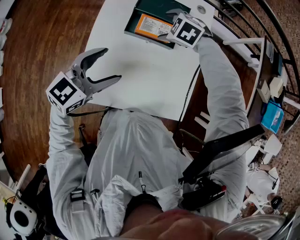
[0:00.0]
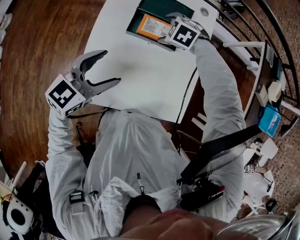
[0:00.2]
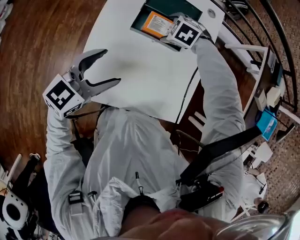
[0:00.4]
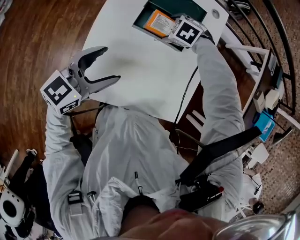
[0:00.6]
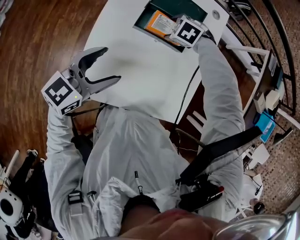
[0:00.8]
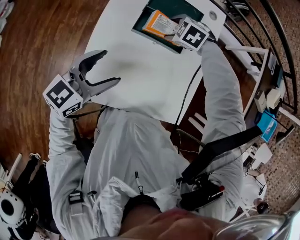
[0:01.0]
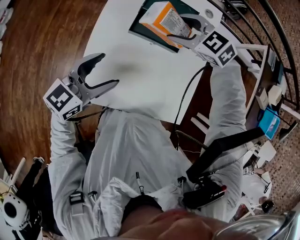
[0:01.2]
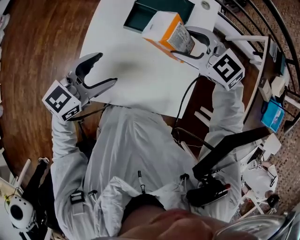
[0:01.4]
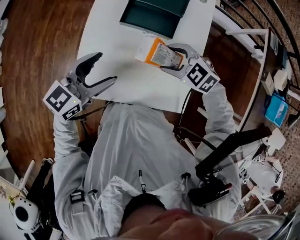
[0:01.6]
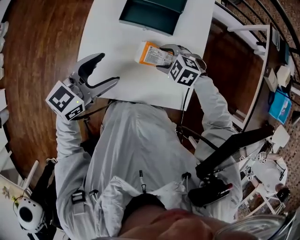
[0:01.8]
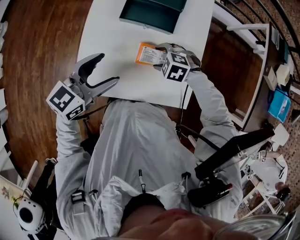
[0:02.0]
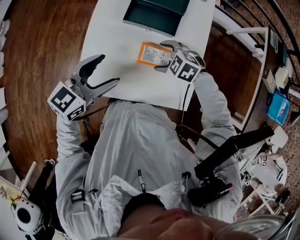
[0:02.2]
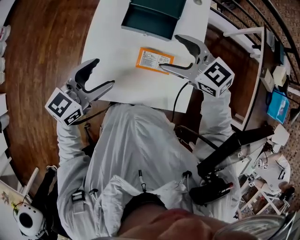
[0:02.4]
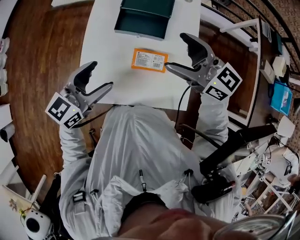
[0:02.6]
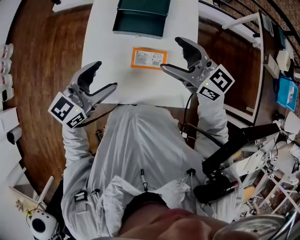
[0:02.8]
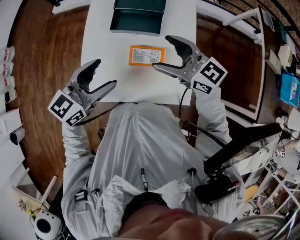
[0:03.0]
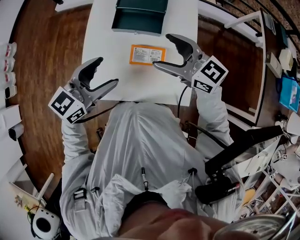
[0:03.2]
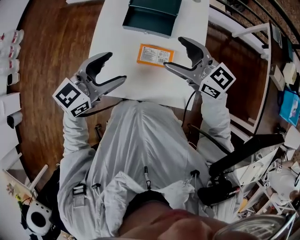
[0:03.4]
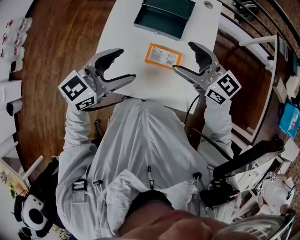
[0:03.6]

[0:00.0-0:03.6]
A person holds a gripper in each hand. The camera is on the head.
0:00.0 to 0:01.8: The right gripper moves up and down over some 20 cm, changing direction 2 times.
0:01.8 to 0:03.6: The right gripper shifts about 20 cm upward, and tilts its fingers approximately 60 degrees upward. The left gripper shifts approximately 5 cm upward.

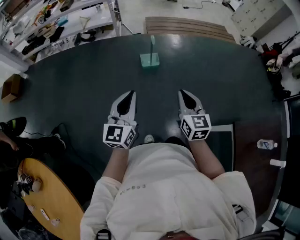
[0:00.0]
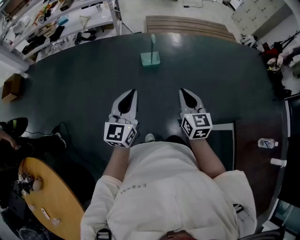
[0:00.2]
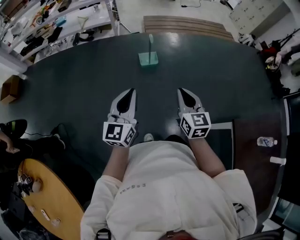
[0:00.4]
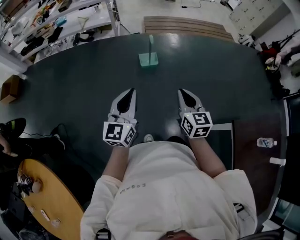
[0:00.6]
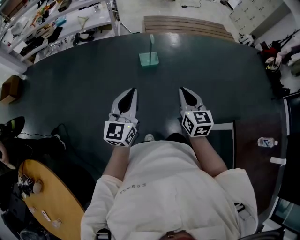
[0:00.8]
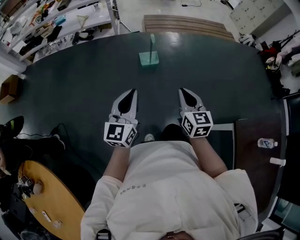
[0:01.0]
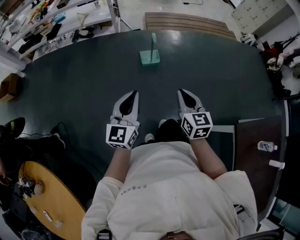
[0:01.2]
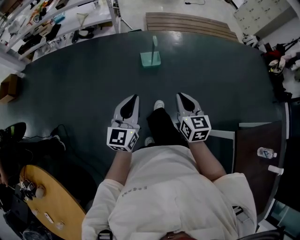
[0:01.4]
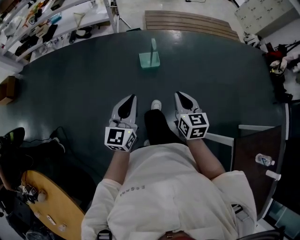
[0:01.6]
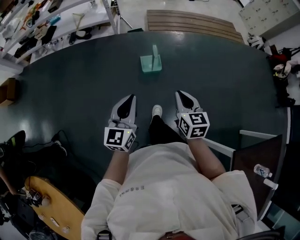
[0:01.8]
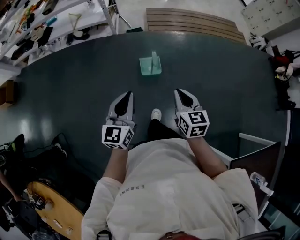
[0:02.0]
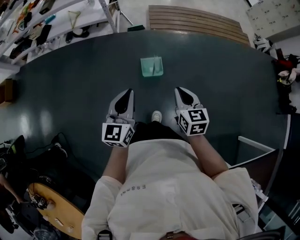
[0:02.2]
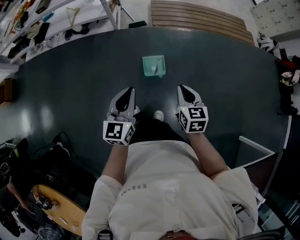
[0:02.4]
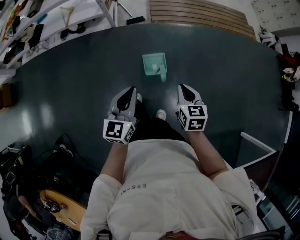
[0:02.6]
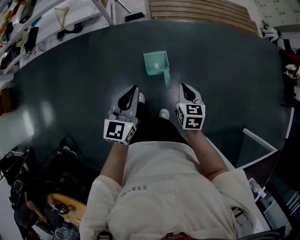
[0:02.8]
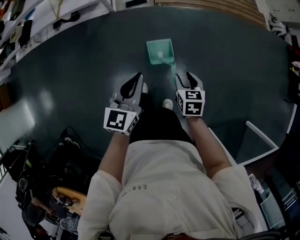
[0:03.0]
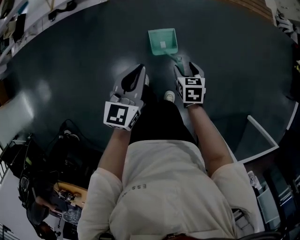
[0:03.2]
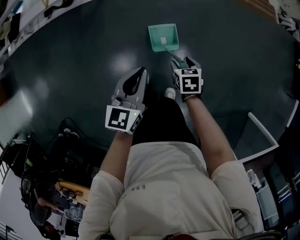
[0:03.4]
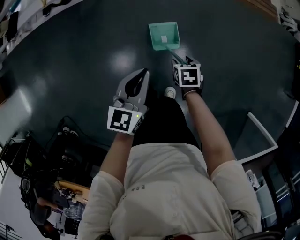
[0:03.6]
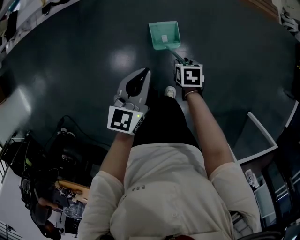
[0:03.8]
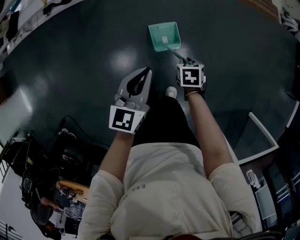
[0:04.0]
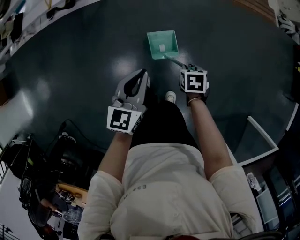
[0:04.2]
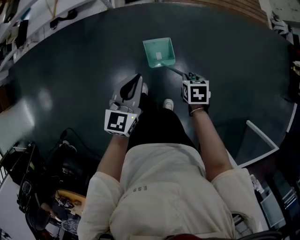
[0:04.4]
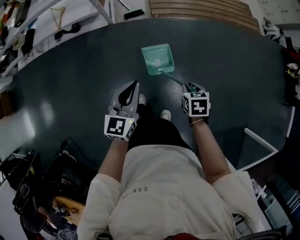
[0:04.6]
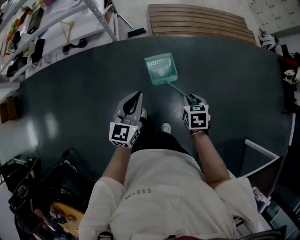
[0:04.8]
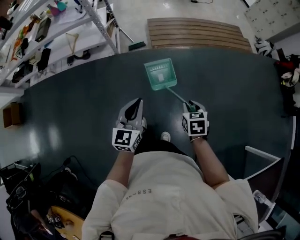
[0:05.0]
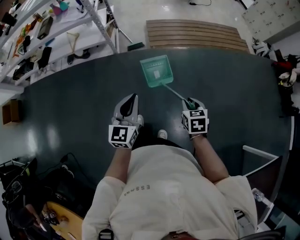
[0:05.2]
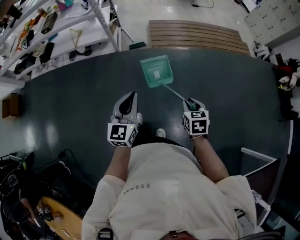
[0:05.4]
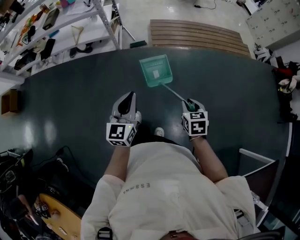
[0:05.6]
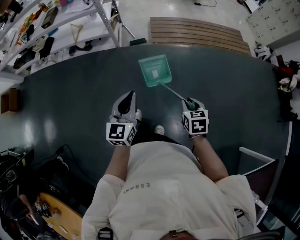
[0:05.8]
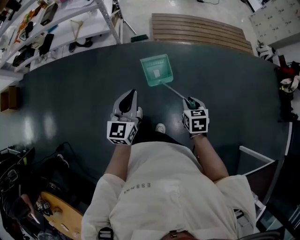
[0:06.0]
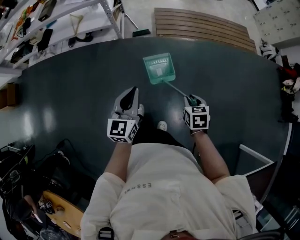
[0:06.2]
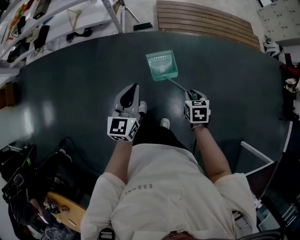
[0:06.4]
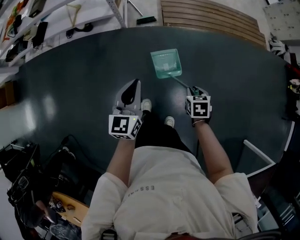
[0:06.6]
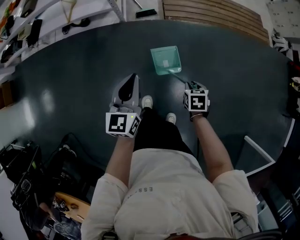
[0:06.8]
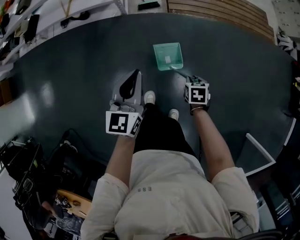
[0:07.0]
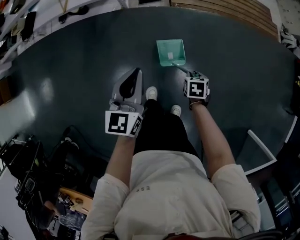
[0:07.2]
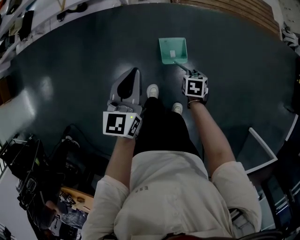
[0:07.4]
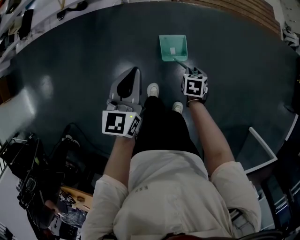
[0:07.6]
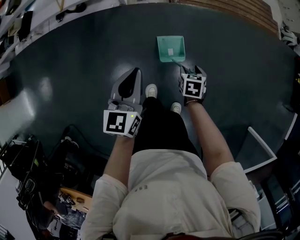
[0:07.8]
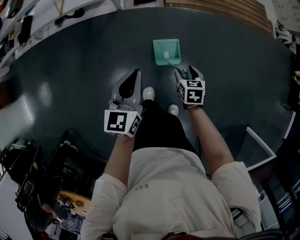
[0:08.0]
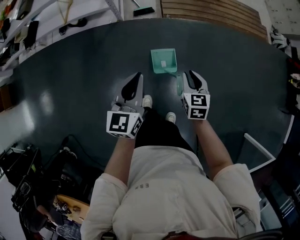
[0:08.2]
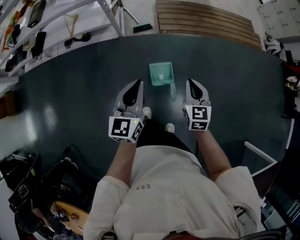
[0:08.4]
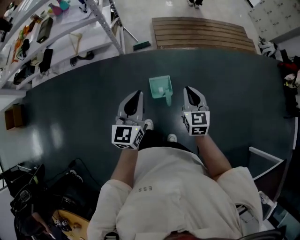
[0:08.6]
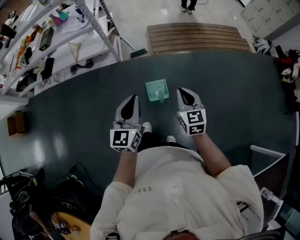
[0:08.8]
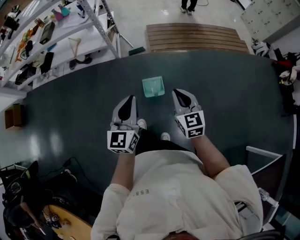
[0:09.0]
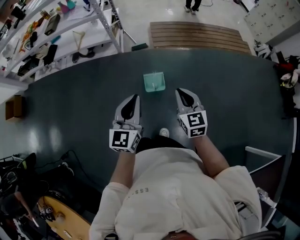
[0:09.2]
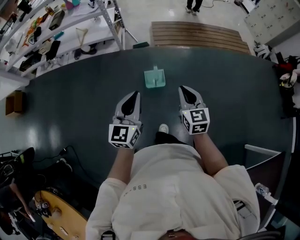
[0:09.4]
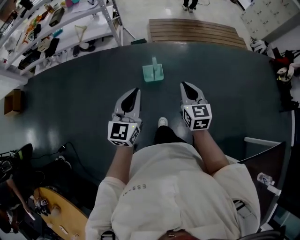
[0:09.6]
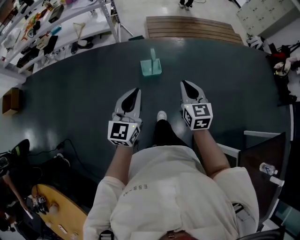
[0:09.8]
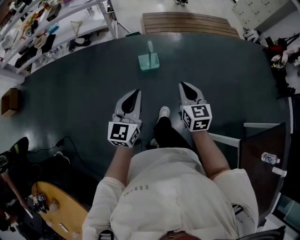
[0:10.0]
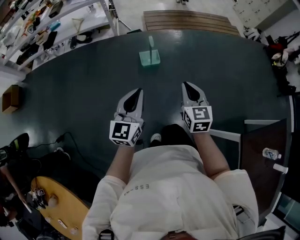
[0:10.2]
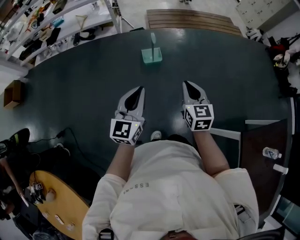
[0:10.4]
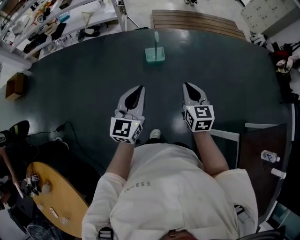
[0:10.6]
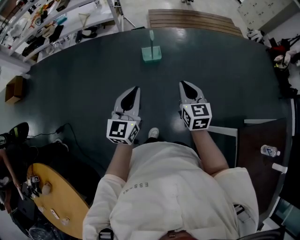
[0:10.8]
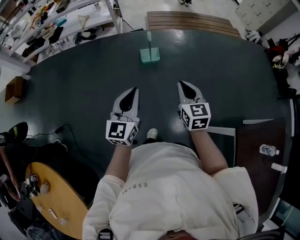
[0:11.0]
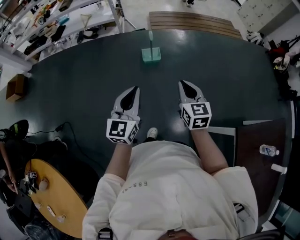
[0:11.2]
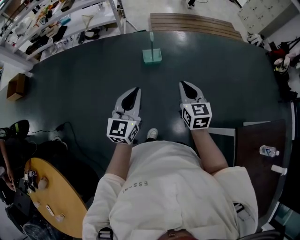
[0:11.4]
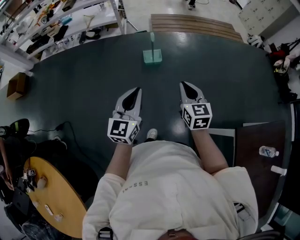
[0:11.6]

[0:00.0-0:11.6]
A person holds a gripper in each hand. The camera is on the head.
0:00.0 to 0:01.4: The grippers both shift forward by roughly 5 cm.
0:01.4 to 0:02.8: The pair of grippers is taken forward, about 50 cm. The right gripper changes its angle by about 20 degrees.
0:02.8 to 0:04.4: The left gripper is displaced downward by roughly 5 cm. Meanwhile the right gripper is displaced downward by about 10 cm, swivels roughly 30 degrees, and opens and closes again.
0:04.4 to 0:05.8: Both grippers move upward and backward, some 20 cm. The right gripper rotates approximately 20 degrees.
0:05.8 to 0:07.2: The left gripper ends up roughly 25 cm from where it was. The right gripper goes some 25 cm downward, and swivels approximately 20 degrees.
0:07.2 to 0:08.8: The right gripper heads upward, covering about 30 cm, tilts its fingers roughly 50 degrees upward, and opens, then closes once more. Meanwhile the left gripper ends up about 25 cm from where it was.
0:08.8 to 0:10.2: Both grippers move backward, some 35 cm.
0:10.2 to 0:11.6: The two grippers go about 10 cm backward.

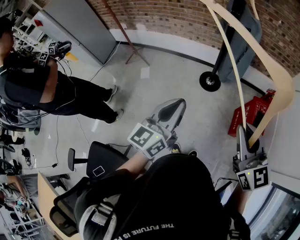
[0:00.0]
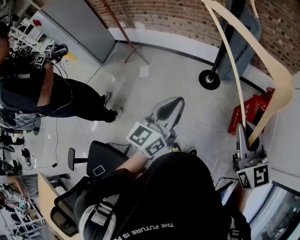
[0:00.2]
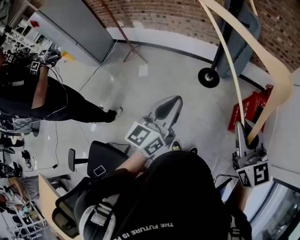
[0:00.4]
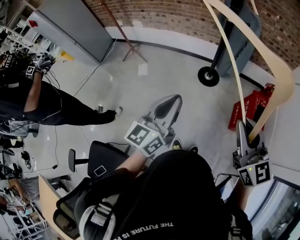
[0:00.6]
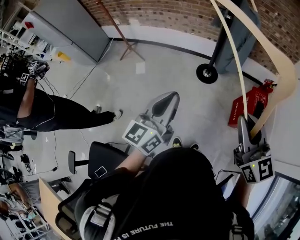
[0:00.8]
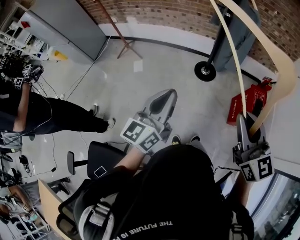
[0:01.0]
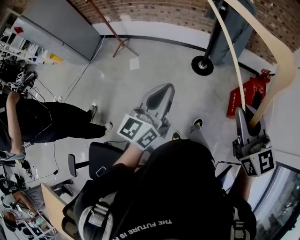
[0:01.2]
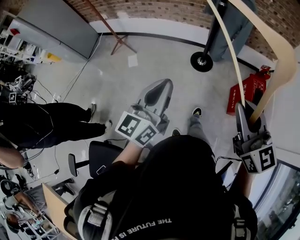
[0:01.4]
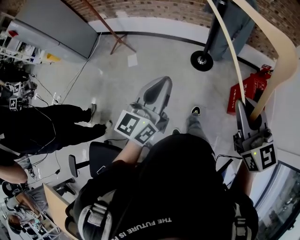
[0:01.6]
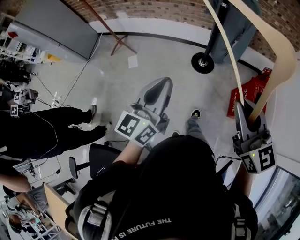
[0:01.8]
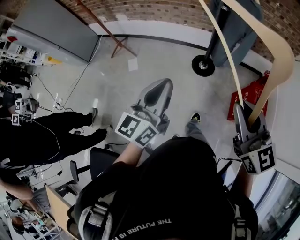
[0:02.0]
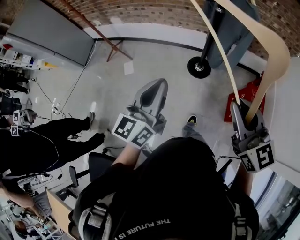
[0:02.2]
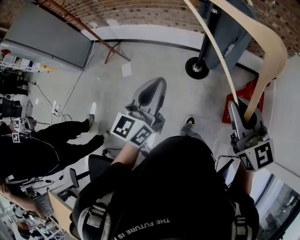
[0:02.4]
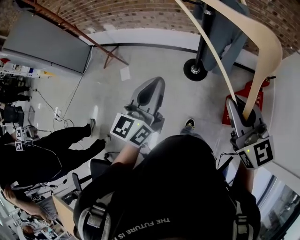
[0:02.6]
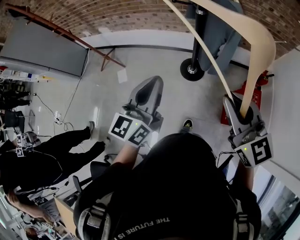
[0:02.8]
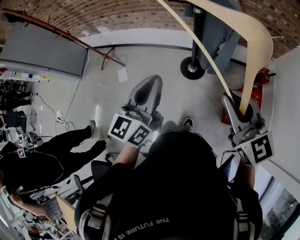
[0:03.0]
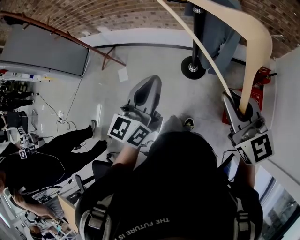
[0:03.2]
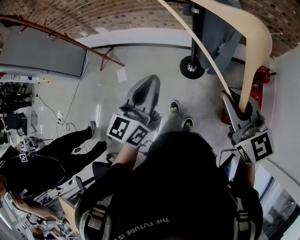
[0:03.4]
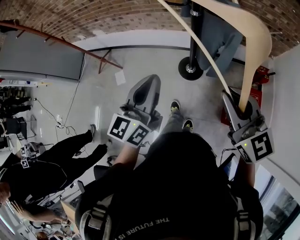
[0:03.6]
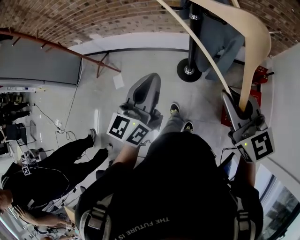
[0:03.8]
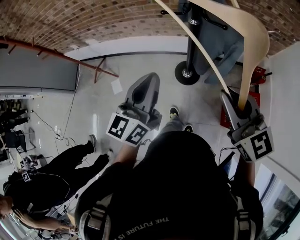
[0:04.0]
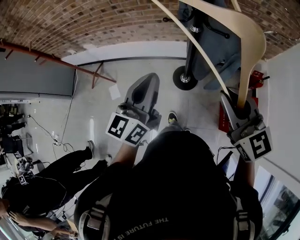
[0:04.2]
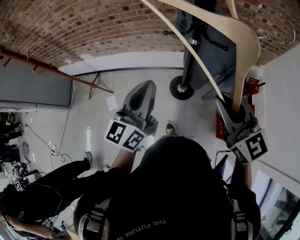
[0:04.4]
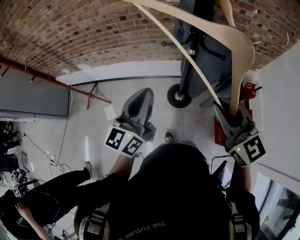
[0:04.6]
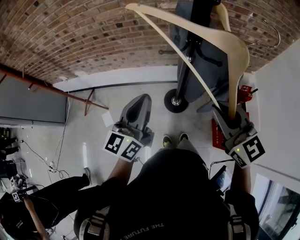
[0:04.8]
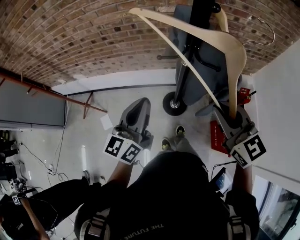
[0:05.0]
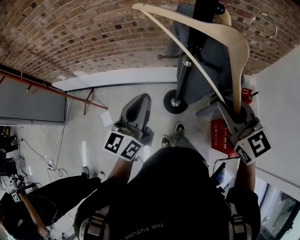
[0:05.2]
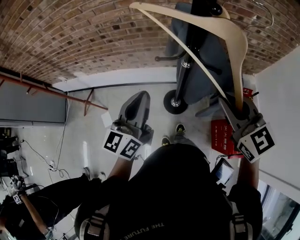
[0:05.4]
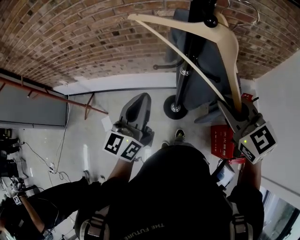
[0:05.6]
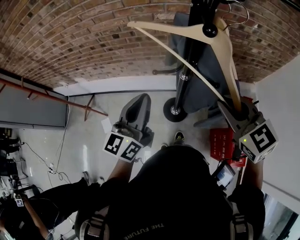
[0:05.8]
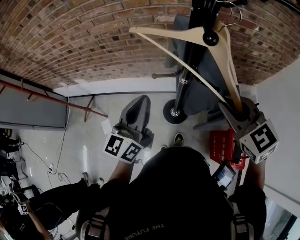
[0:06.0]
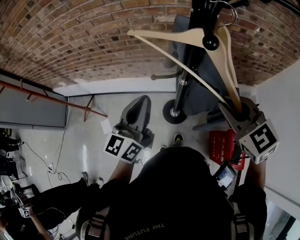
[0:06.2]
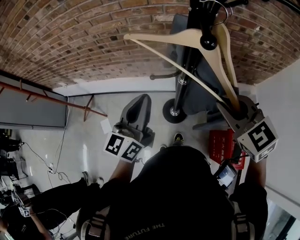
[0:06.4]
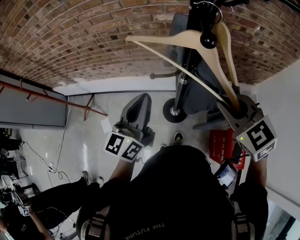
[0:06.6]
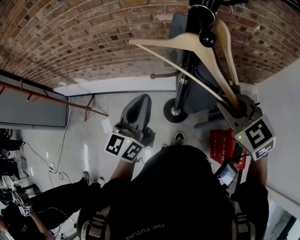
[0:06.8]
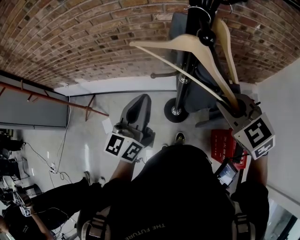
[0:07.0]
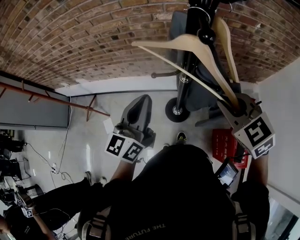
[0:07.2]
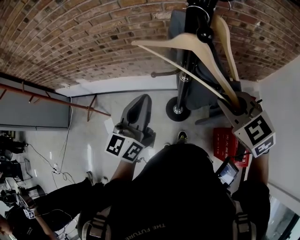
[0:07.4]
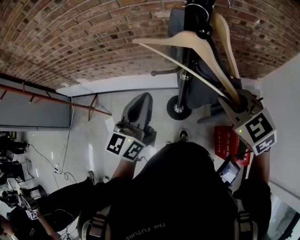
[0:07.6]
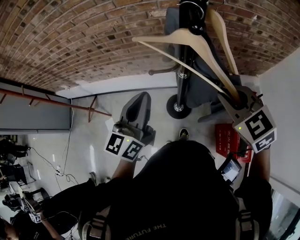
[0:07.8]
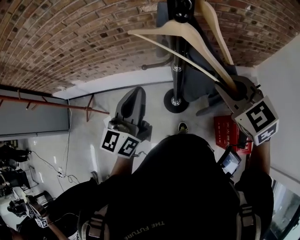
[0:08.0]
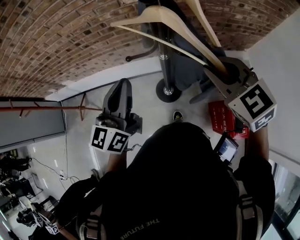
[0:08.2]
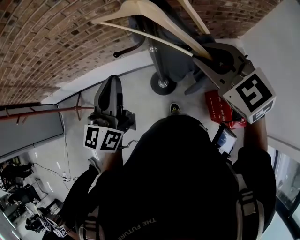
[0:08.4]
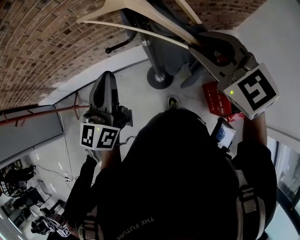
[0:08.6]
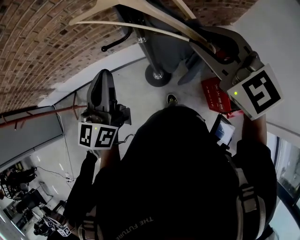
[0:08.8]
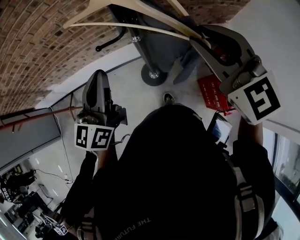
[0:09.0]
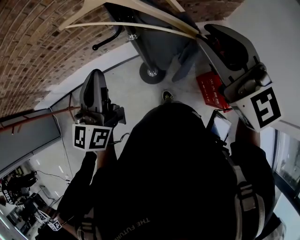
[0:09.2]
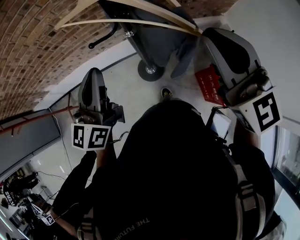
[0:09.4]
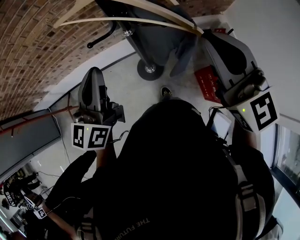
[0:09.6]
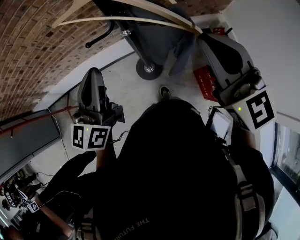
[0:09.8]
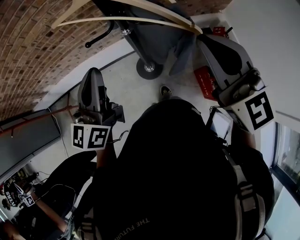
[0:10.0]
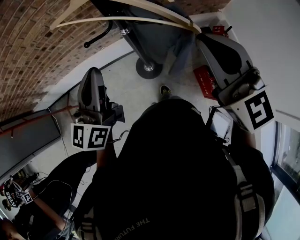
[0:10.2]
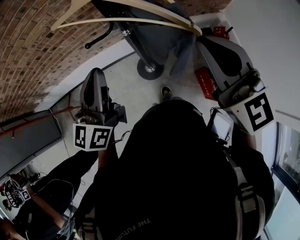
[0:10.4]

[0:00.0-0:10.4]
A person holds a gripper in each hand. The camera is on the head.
0:00.0 to 0:01.4: Both grippers travel together to the left, approximately 5 cm.
0:01.4 to 0:03.0: Both grippers move forward and to the right, some 30 cm.
0:03.0 to 0:04.4: Both grippers travel together forward, some 15 cm.
0:04.4 to 0:06.0: The left gripper moves forward, roughly 15 cm, while the right gripper goes approximately 20 cm forward and to the right, and rotates some 20 degrees.
0:06.0 to 0:07.4: The grippers move only a little.
0:07.4 to 0:09.0: The right gripper heads upward, covering about 5 cm, and turns by roughly 30 degrees.
0:09.0 to 0:10.4: There are only small adjustments of the grippers.
